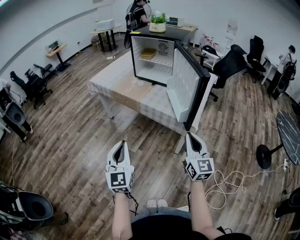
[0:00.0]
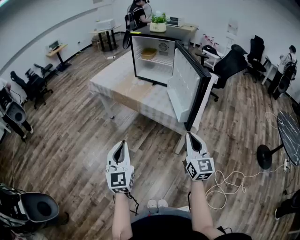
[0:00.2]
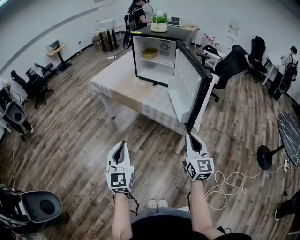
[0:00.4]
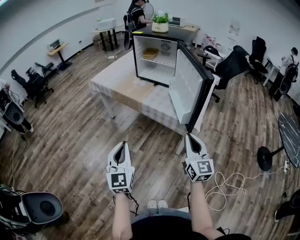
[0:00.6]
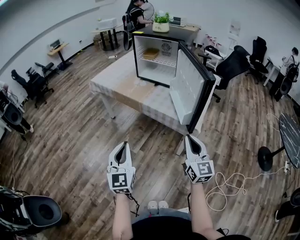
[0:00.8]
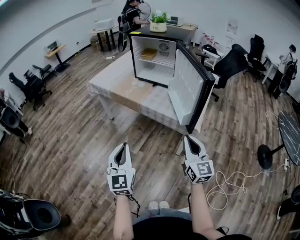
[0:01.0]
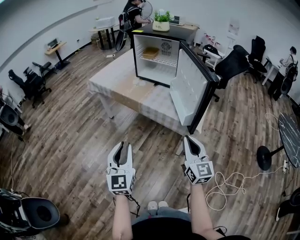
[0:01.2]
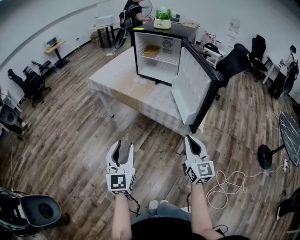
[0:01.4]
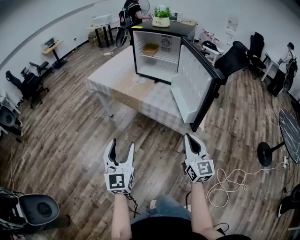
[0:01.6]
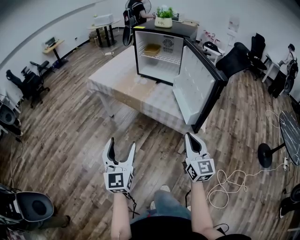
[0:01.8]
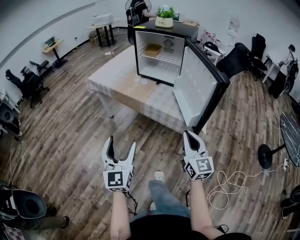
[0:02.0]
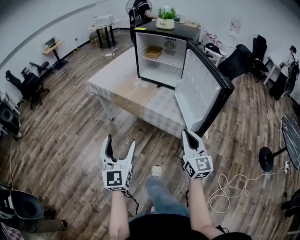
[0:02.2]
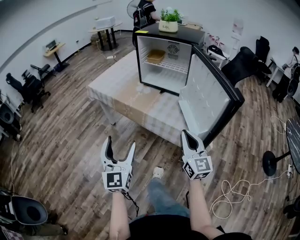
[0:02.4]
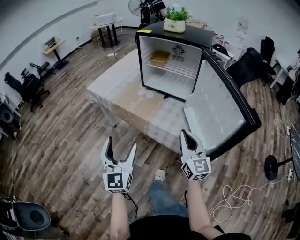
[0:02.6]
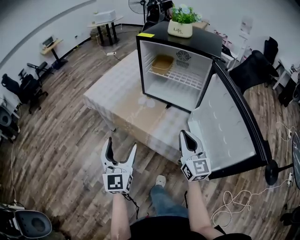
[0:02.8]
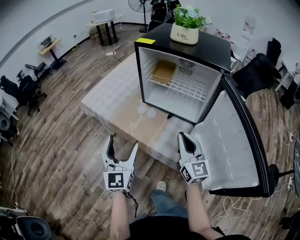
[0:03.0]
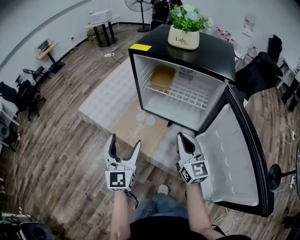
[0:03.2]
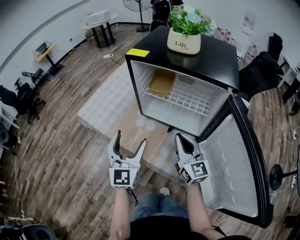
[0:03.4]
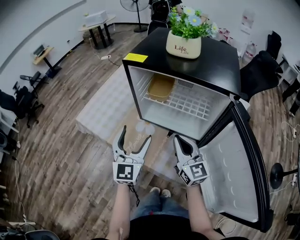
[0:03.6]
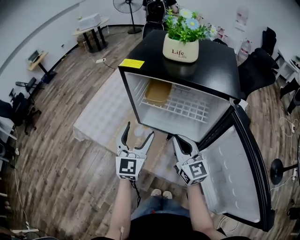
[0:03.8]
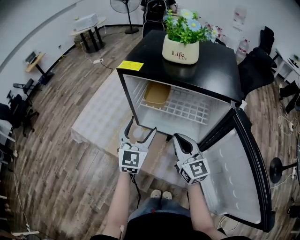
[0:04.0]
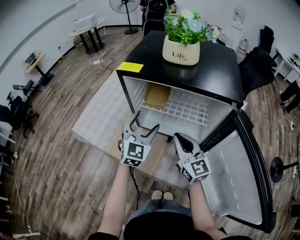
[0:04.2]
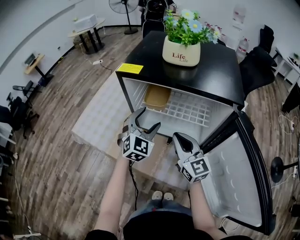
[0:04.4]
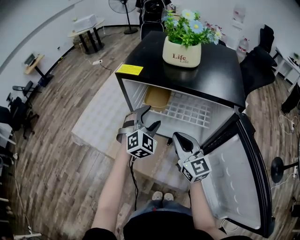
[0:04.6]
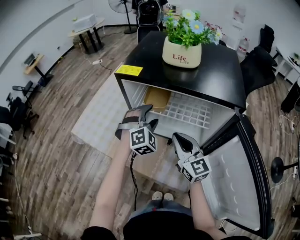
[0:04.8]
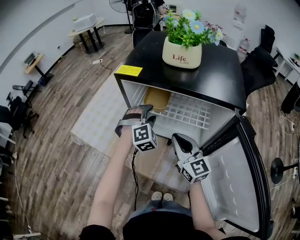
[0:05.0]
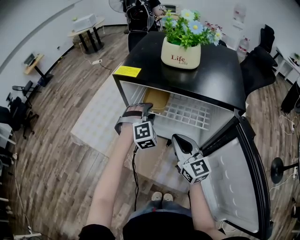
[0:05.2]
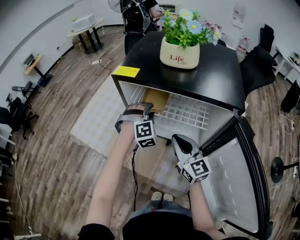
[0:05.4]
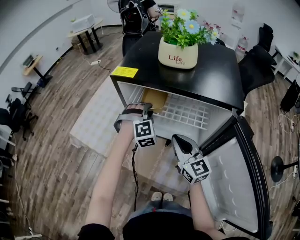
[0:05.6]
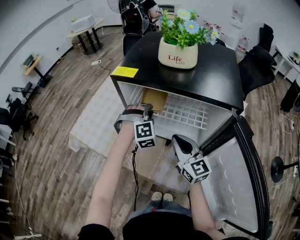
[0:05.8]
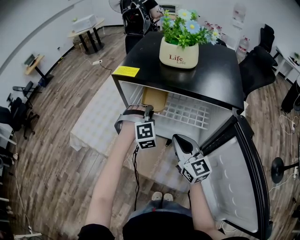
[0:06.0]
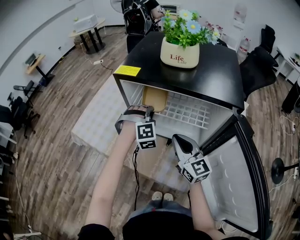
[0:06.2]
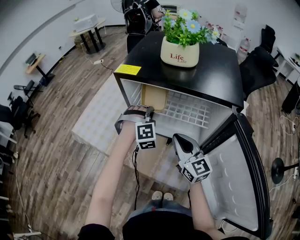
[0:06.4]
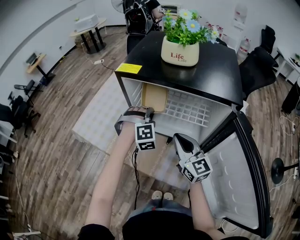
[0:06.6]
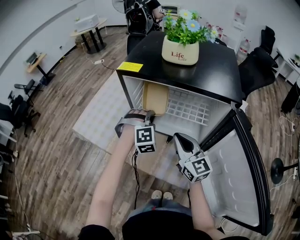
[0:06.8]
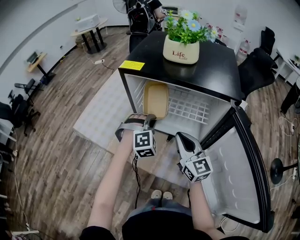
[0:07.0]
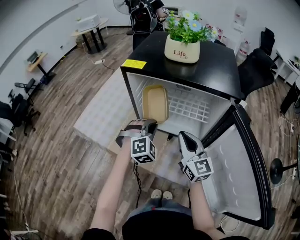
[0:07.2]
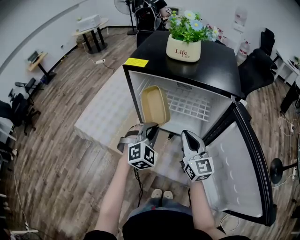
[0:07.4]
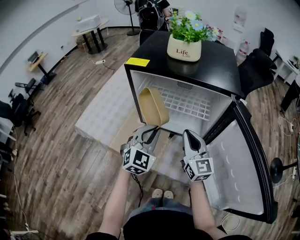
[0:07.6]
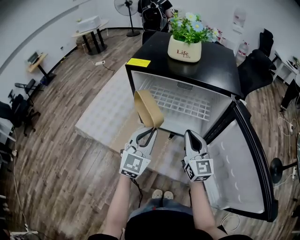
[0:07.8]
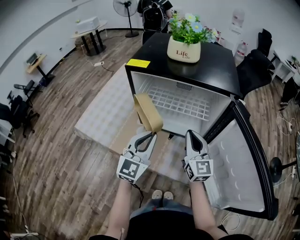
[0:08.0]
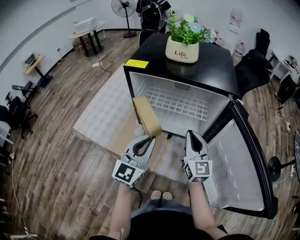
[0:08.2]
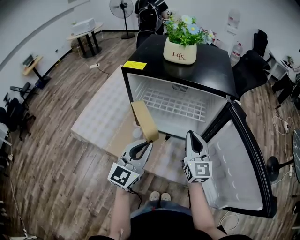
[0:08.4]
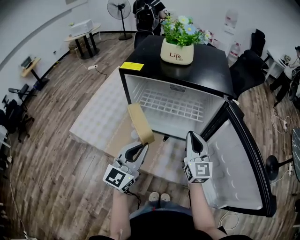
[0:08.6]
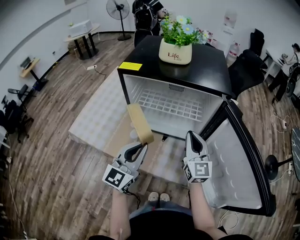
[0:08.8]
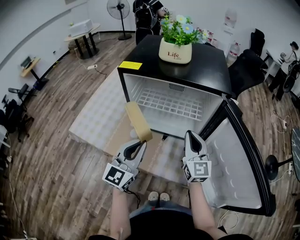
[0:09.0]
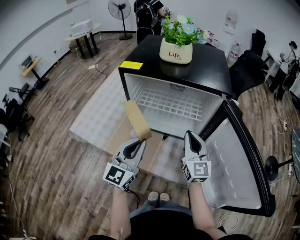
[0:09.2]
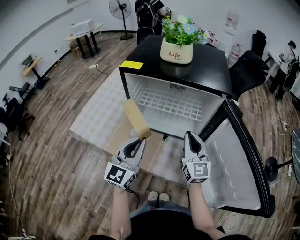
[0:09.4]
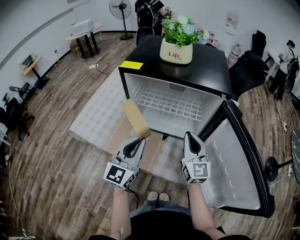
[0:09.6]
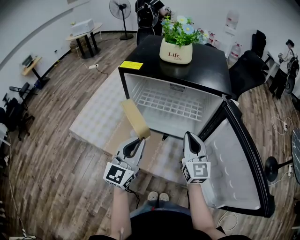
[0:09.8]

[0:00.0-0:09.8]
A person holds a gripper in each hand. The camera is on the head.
0:00.0 to 0:01.4: The right gripper moves some 5 cm. Meanwhile the left gripper opens its fingers.
0:01.4 to 0:02.8: The grippers both shift forward by approximately 35 cm. The left gripper opens.
0:02.8 to 0:04.2: The grippers both shift forward by some 35 cm. The left gripper swivels roughly 30 degrees.
0:04.2 to 0:05.6: The left gripper shifts approximately 10 cm forward and downward, rotates around the line of its fingers by roughly 50 degrees, clockwise from behind, and closes up.
0:05.6 to 0:07.0: The left gripper travels backward by approximately 10 cm.
0:07.0 to 0:08.4: The right gripper moves to the right, approximately 5 cm, and swivels some 20 degrees, while the left gripper shifts approximately 20 cm backward and upward, and tilts its fingers roughly 40 degrees upward.
0:08.4 to 0:09.8: The grippers stay close to where they were, moving slightly.

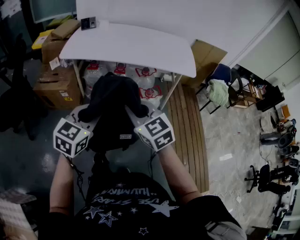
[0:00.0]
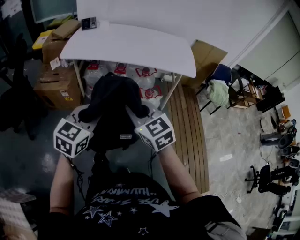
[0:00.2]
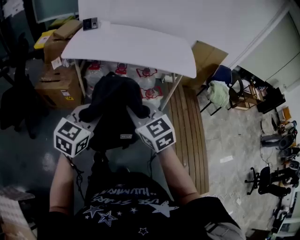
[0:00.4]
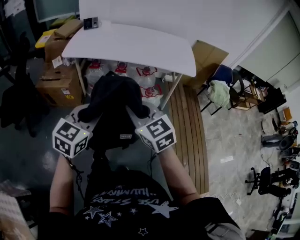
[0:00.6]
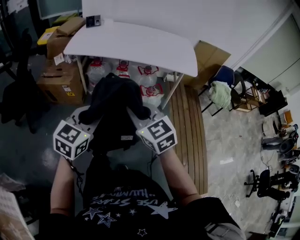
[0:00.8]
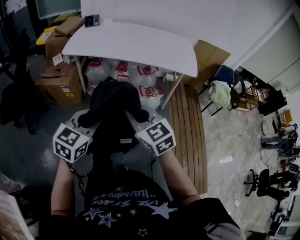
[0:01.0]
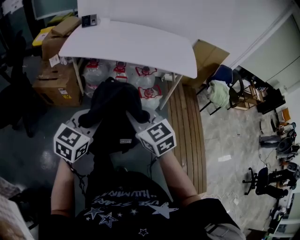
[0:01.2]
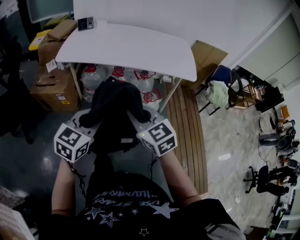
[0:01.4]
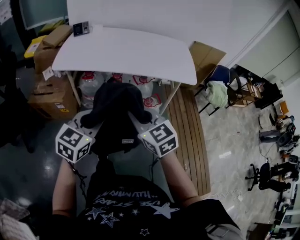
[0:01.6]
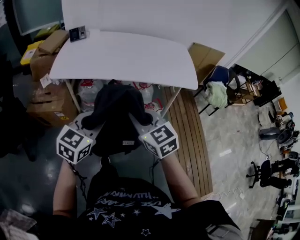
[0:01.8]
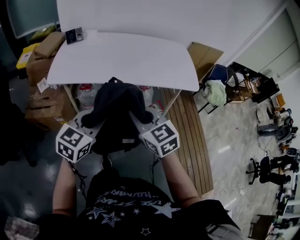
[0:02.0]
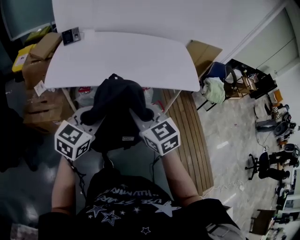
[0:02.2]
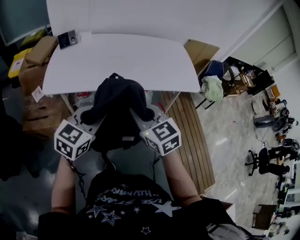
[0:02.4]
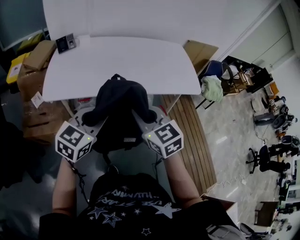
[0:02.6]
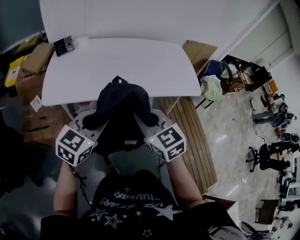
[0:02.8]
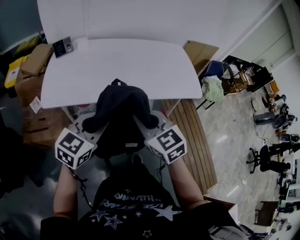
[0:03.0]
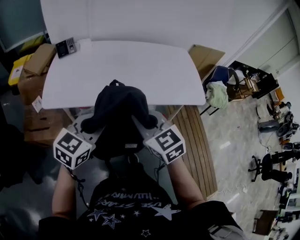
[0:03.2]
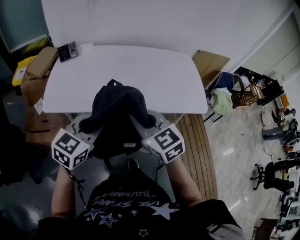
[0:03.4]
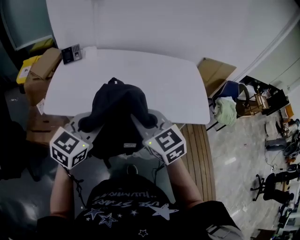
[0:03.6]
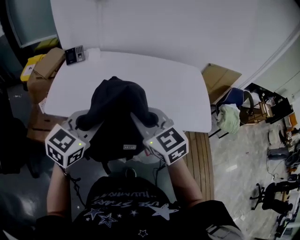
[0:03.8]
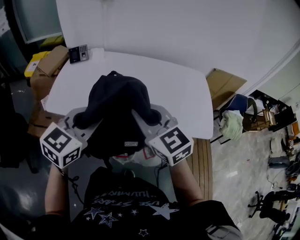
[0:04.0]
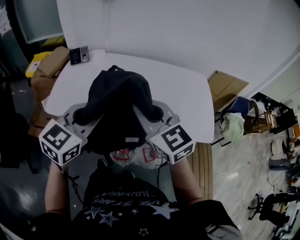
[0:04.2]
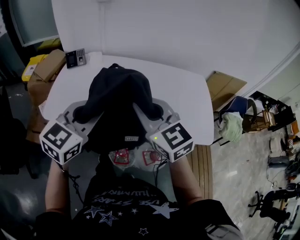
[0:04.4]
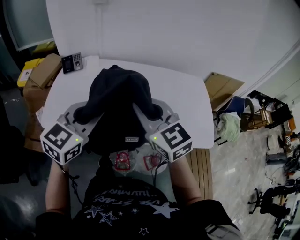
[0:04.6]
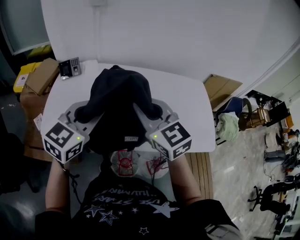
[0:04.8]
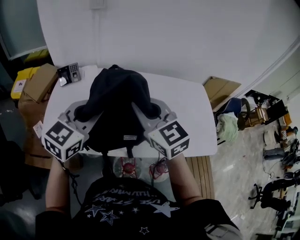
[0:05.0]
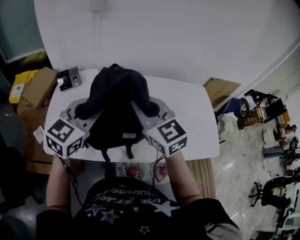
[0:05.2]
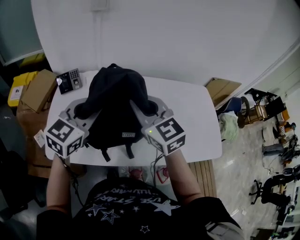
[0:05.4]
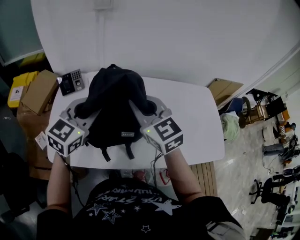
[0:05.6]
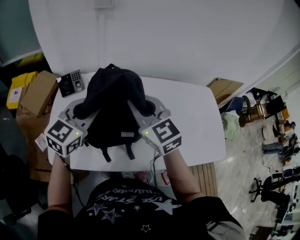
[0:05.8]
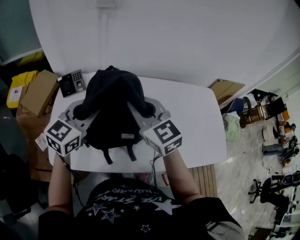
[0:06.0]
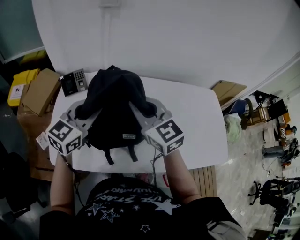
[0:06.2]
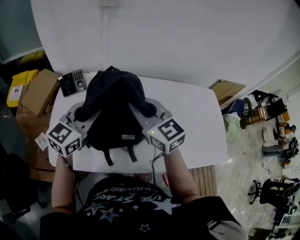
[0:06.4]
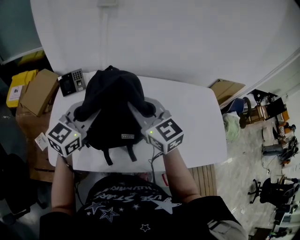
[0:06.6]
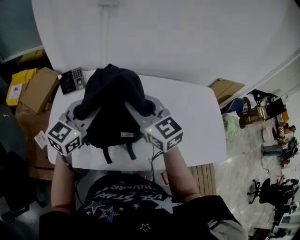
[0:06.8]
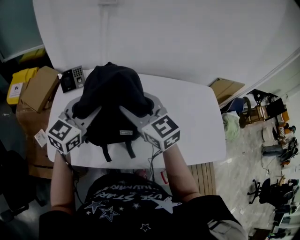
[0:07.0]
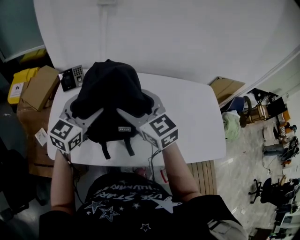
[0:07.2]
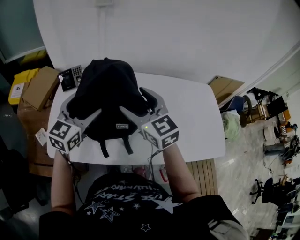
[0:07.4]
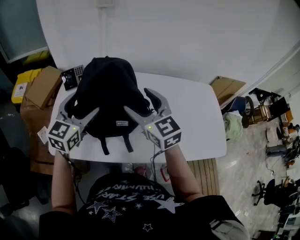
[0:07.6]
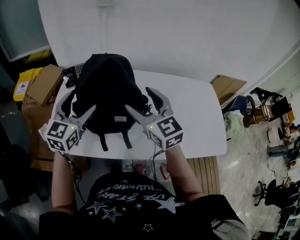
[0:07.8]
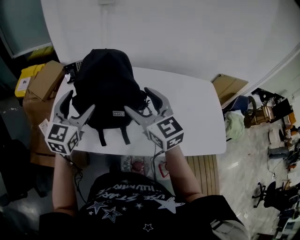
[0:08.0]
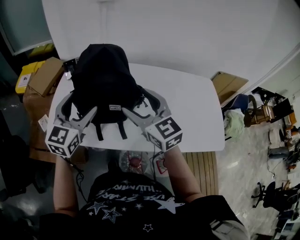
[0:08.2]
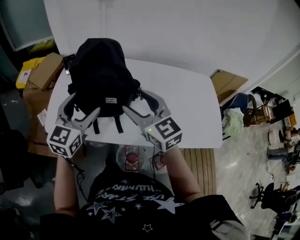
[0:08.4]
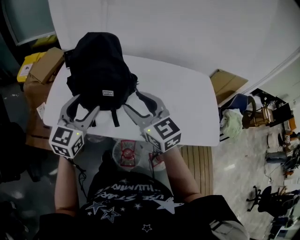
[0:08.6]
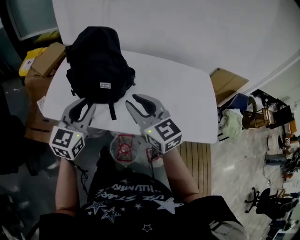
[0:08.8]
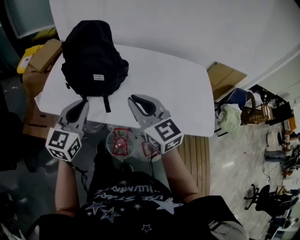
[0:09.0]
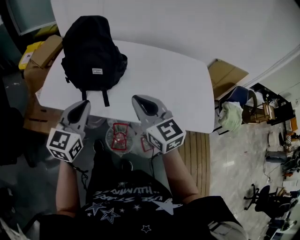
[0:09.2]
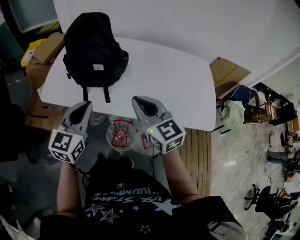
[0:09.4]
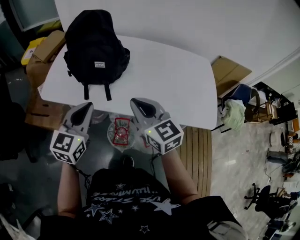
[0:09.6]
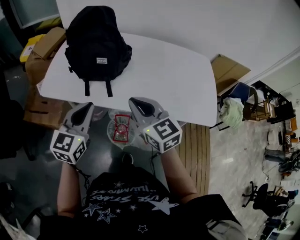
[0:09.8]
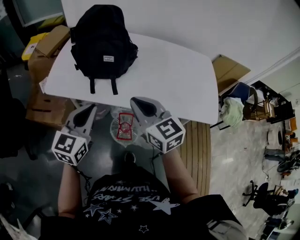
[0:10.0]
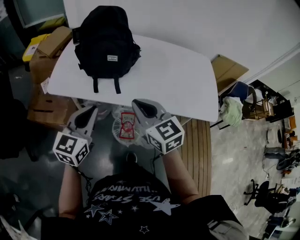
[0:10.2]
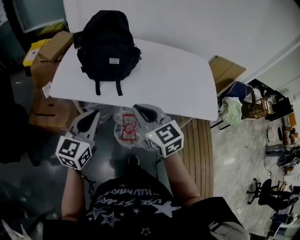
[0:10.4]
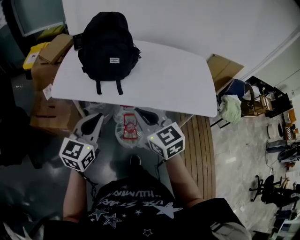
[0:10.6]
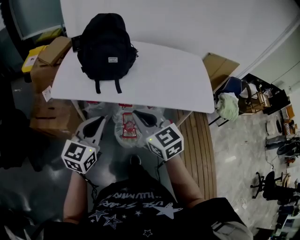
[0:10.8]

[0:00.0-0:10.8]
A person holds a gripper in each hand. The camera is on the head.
0:00.0 to 0:01.6: Both grippers move forward, approximately 10 cm.
0:01.6 to 0:03.0: The grippers both shift forward and to the left by some 25 cm.
0:03.0 to 0:04.6: The grippers both shift forward by approximately 25 cm.
0:04.6 to 0:06.2: The grippers both shift forward and to the left by some 25 cm.
0:06.2 to 0:07.8: The right gripper moves backward and to the right, about 10 cm, and opens; the left gripper travels backward by approximately 5 cm, and opens.
0:07.8 to 0:09.2: Both grippers travel together backward and to the right, about 25 cm. The right gripper closes. Meanwhile the left gripper closes up.
0:09.2 to 0:10.8: The right gripper is displaced backward and to the left by roughly 20 cm, while the left gripper goes about 15 cm backward.

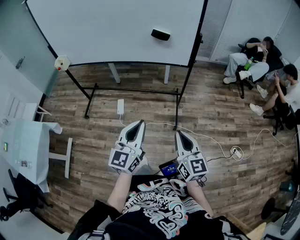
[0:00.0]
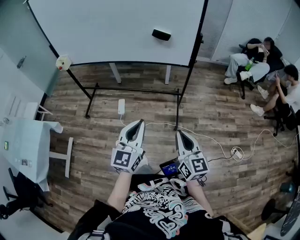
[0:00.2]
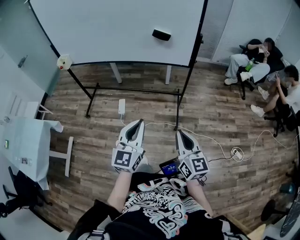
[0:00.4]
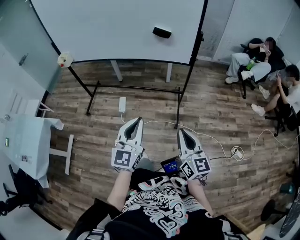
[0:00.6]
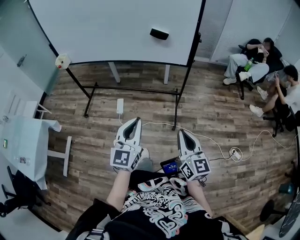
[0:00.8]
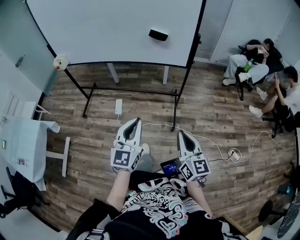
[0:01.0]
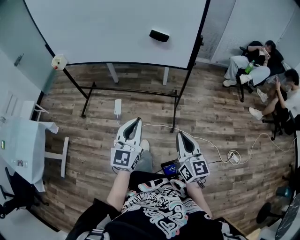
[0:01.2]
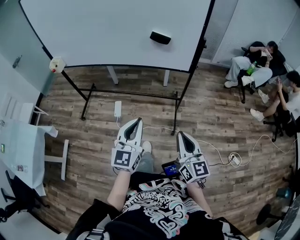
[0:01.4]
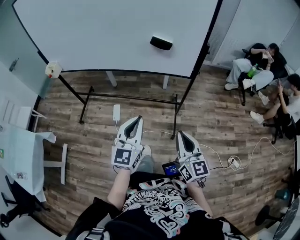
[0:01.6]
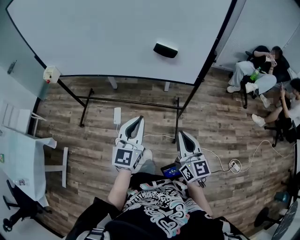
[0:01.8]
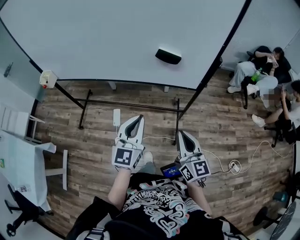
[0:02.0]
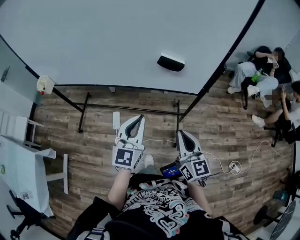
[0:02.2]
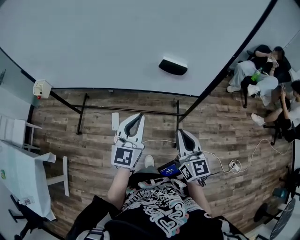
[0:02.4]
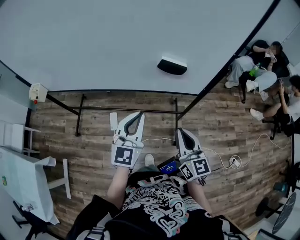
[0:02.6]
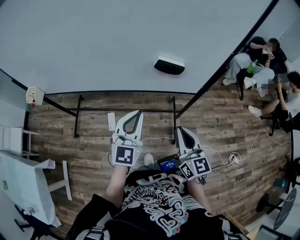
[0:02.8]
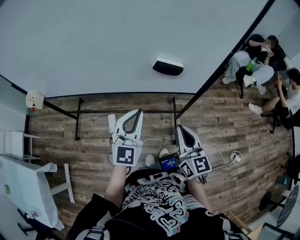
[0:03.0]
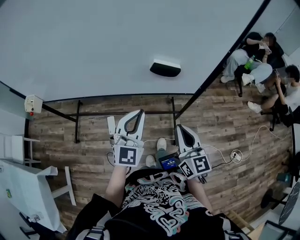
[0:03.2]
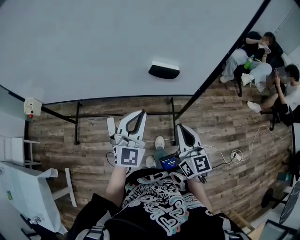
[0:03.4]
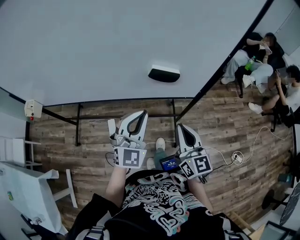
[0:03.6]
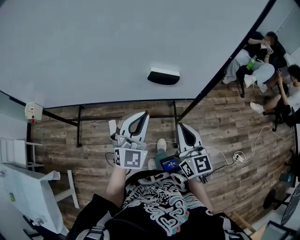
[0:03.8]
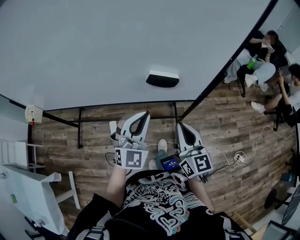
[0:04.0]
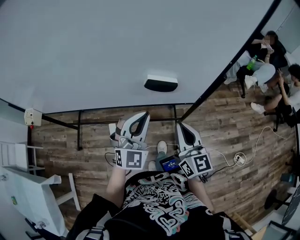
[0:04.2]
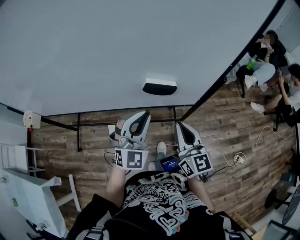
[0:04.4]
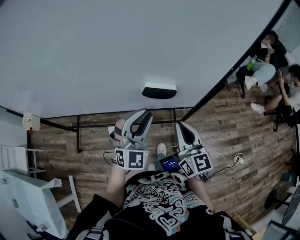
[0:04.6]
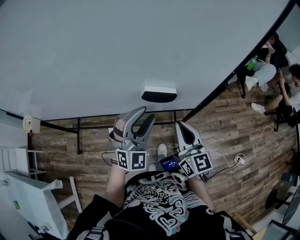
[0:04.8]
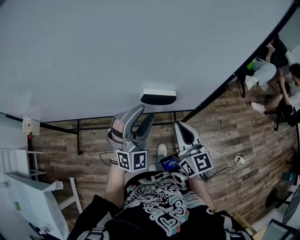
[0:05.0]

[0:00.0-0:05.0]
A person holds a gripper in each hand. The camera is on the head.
0:00.0 to 0:01.6: Both grippers travel together forward, some 15 cm.
0:01.6 to 0:03.4: Both grippers travel together forward, some 25 cm. The left gripper changes its angle by roughly 30 degrees.
0:03.4 to 0:05.0: Both grippers move forward, some 10 cm. The left gripper turns by approximately 30 degrees, and opens its fingers.
